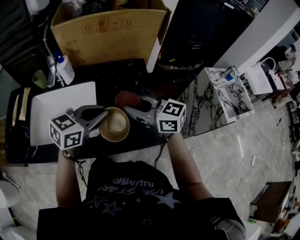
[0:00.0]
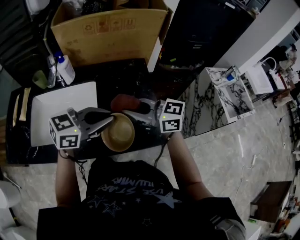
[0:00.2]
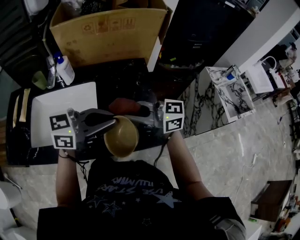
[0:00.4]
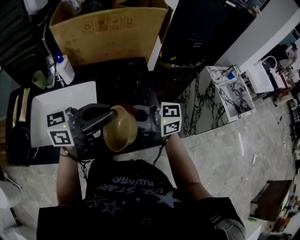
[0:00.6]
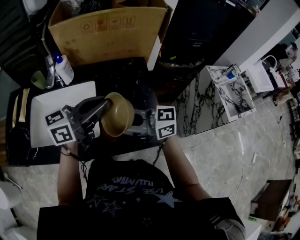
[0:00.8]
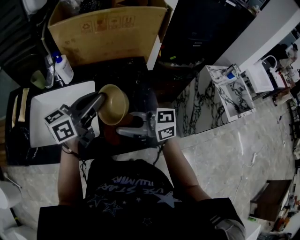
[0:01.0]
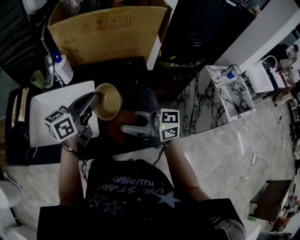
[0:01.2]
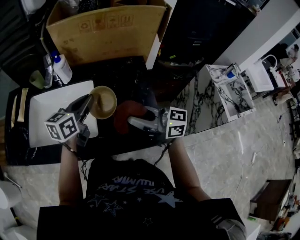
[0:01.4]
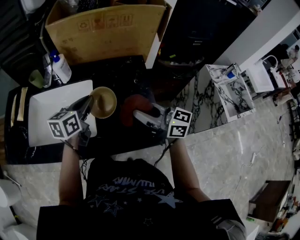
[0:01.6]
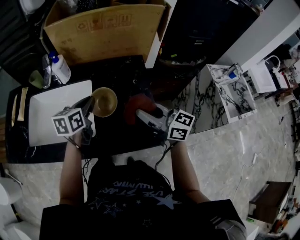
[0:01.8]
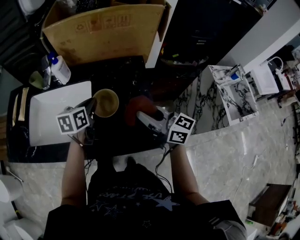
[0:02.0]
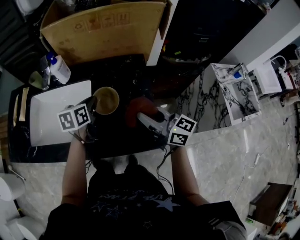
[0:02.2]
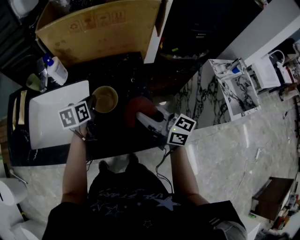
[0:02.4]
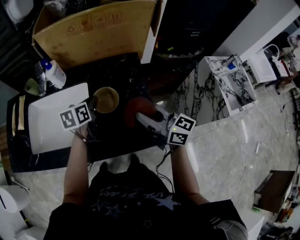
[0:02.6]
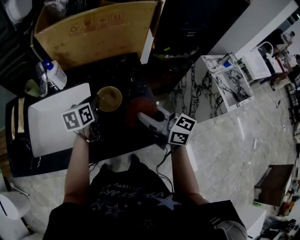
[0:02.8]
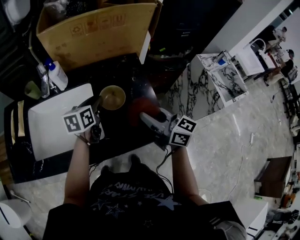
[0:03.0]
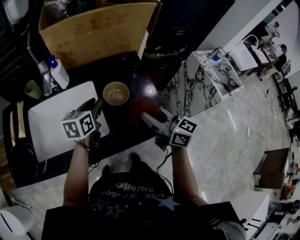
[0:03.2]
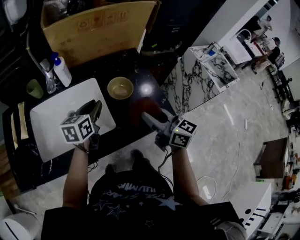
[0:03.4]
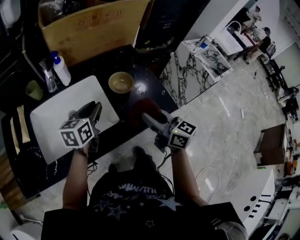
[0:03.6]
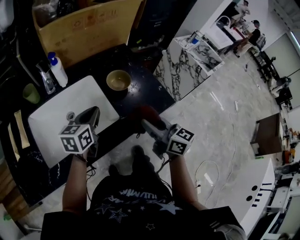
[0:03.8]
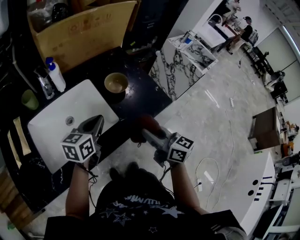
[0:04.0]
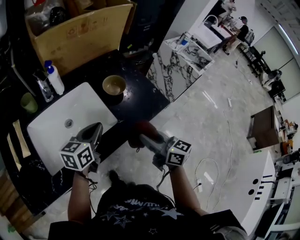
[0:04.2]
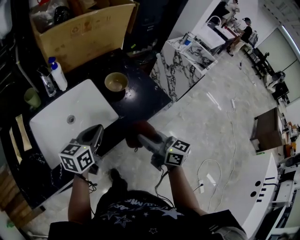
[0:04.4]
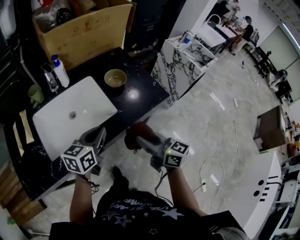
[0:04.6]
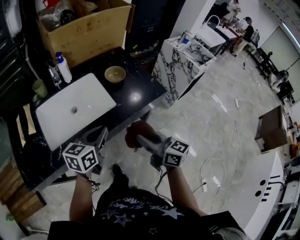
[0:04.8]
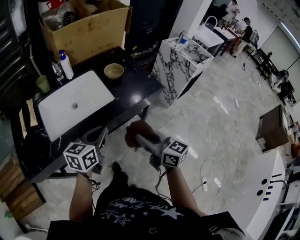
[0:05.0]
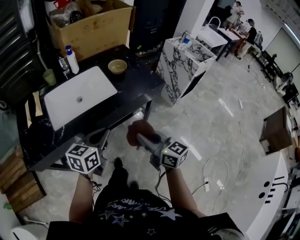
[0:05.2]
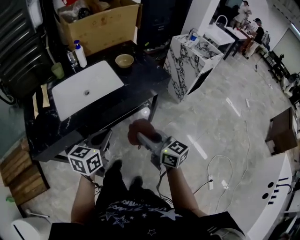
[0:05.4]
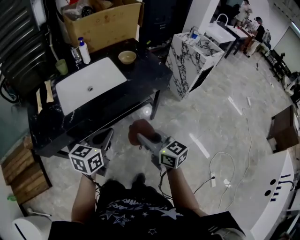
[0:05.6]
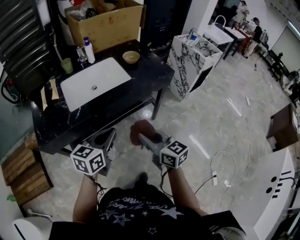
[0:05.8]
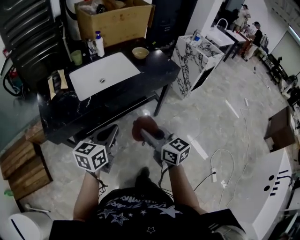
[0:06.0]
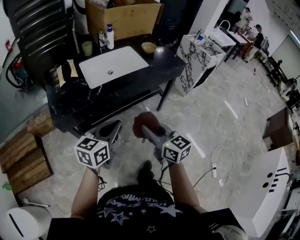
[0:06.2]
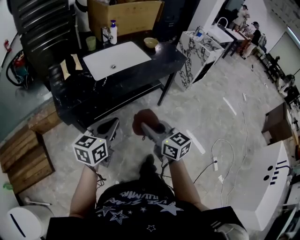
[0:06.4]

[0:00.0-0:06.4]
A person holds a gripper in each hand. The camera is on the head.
0.0 to 1.6 s: The left gripper moves some 10 cm, and turns by approximately 30 degrees; the right gripper shifts by some 5 cm.
1.6 to 3.2 s: The left gripper opens. Meanwhile the right gripper turns by approximately 20 degrees.
3.2 to 4.8 s: The grippers both shift backward by some 25 cm. The left gripper swivels roughly 30 degrees, and closes its fingers.
4.8 to 6.4 s: Both grippers travel together backward and to the left, about 40 cm.

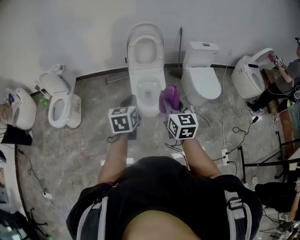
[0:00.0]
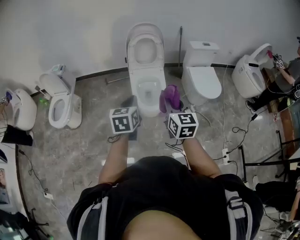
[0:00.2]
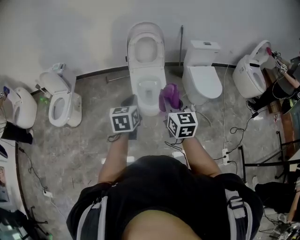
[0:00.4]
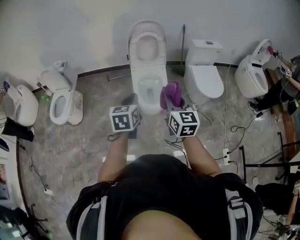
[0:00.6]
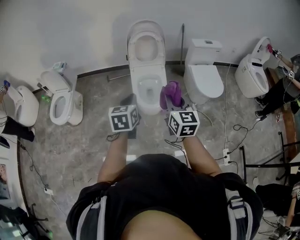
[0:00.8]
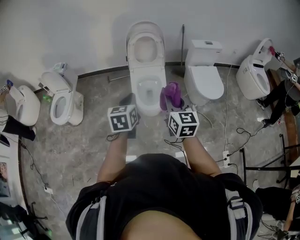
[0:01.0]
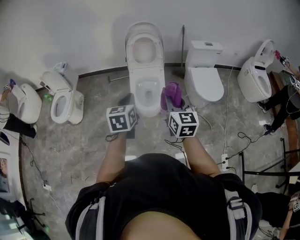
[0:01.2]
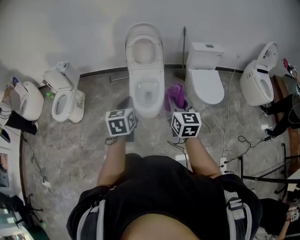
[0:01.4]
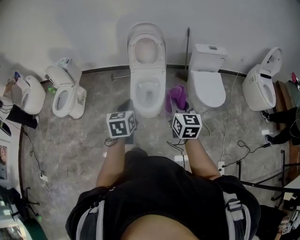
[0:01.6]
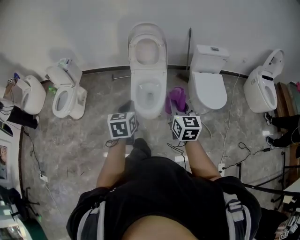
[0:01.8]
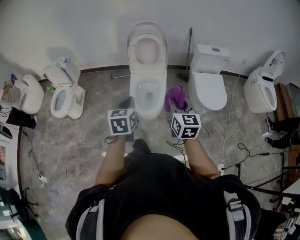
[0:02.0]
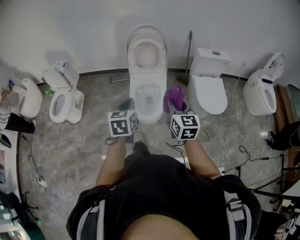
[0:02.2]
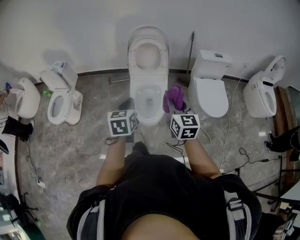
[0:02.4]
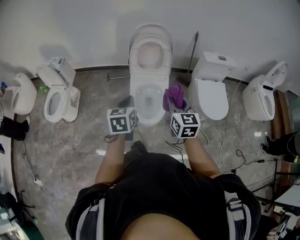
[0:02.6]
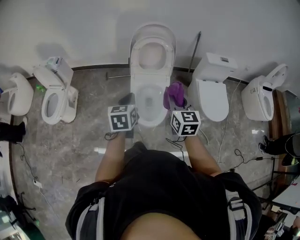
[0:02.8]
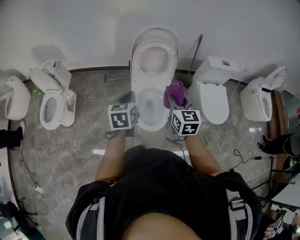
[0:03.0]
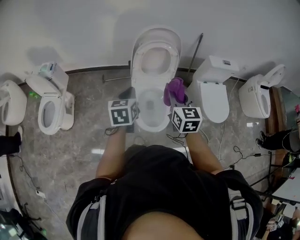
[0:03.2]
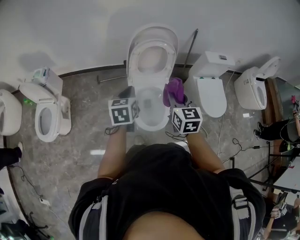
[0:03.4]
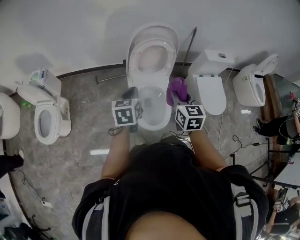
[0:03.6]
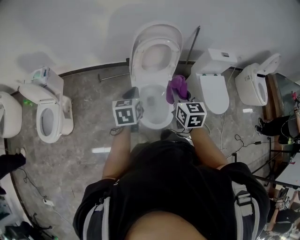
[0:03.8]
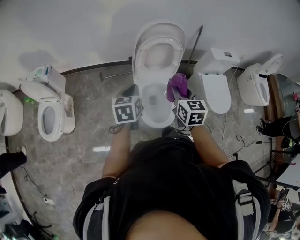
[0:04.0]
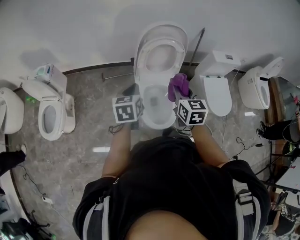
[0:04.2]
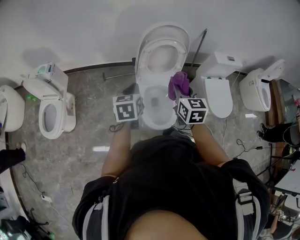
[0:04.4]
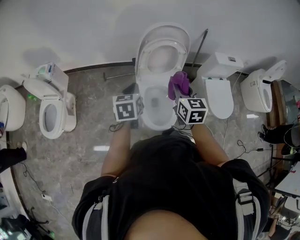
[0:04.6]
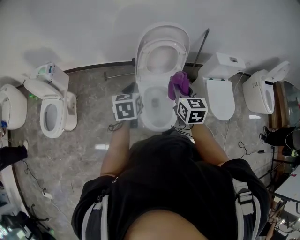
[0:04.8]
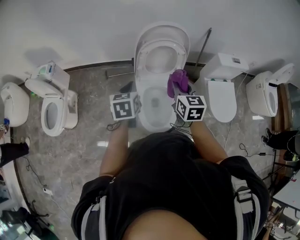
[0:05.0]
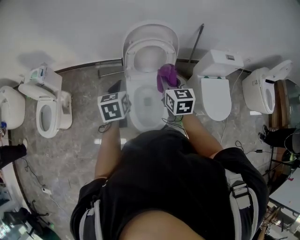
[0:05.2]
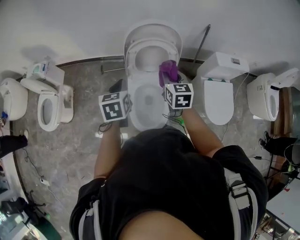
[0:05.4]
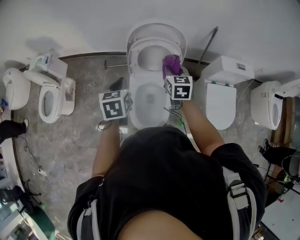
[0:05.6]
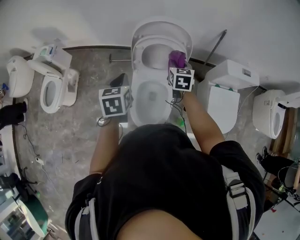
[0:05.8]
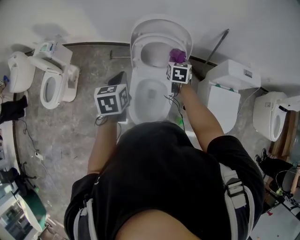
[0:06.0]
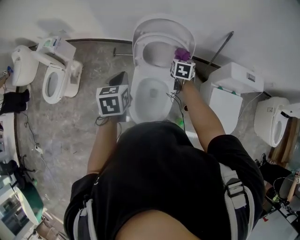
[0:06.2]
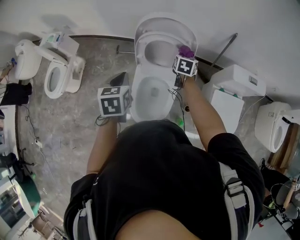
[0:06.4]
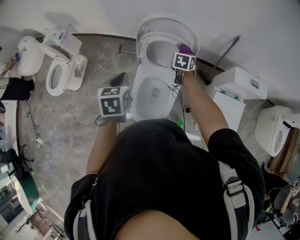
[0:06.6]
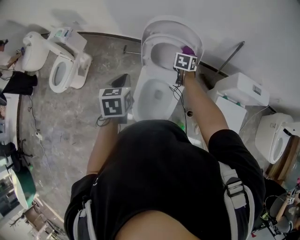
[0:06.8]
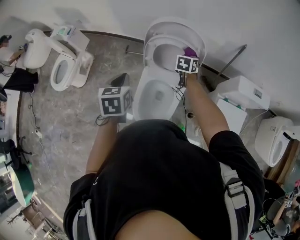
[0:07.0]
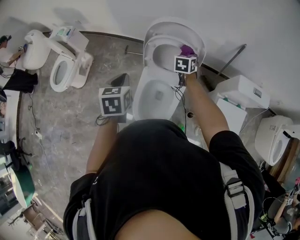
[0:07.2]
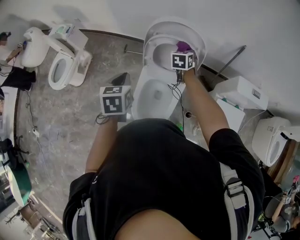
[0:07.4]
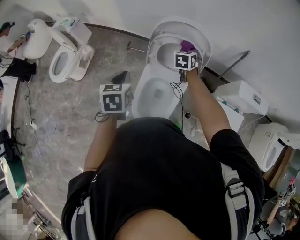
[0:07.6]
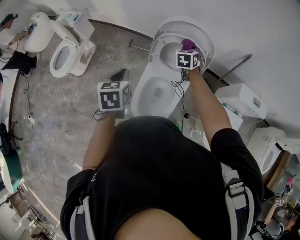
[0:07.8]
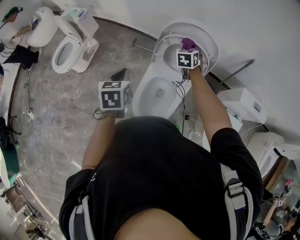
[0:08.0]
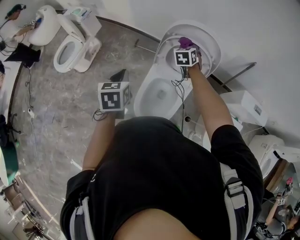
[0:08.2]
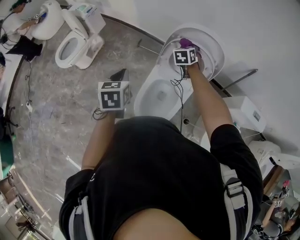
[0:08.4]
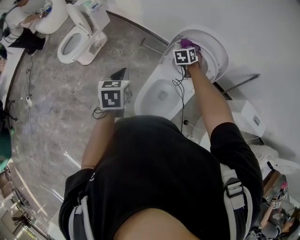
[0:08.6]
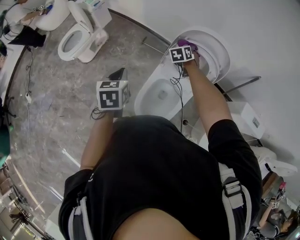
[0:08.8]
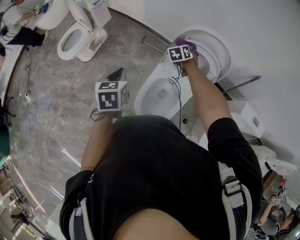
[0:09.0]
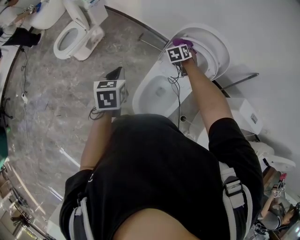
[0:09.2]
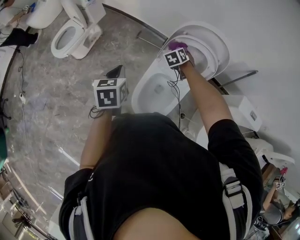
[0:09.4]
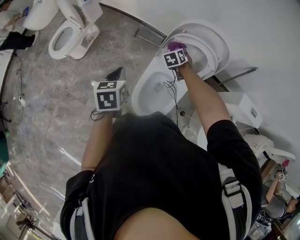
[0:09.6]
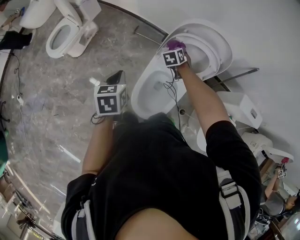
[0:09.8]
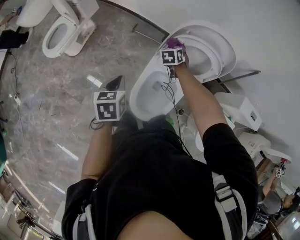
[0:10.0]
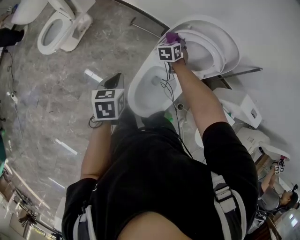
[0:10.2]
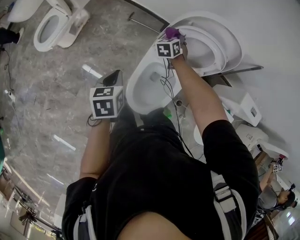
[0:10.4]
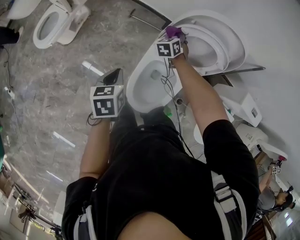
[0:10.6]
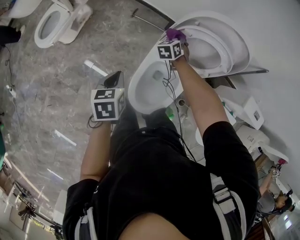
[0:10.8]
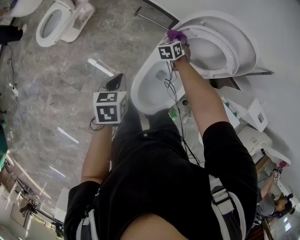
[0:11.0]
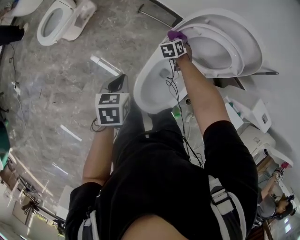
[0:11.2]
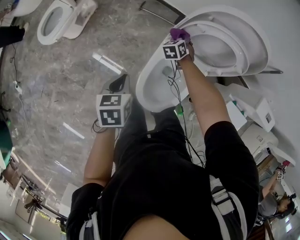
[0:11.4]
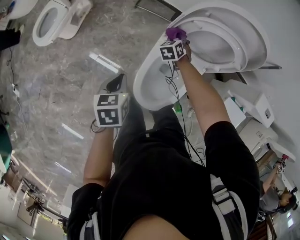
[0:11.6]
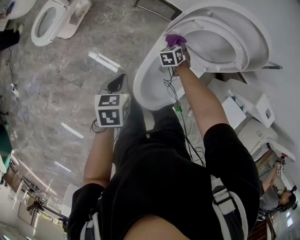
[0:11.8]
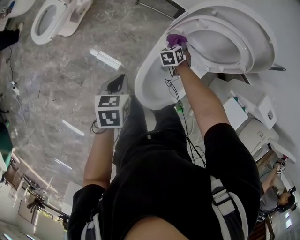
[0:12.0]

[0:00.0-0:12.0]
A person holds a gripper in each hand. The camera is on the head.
0.0 to 1.6 s: Both grippers move to the right, approximately 15 cm.
1.6 to 3.0 s: The right gripper shifts roughly 35 cm forward and to the left. The left gripper travels forward by roughly 35 cm.
3.0 to 4.4 s: The grippers both shift to the left and forward by approximately 15 cm.
4.4 to 6.0 s: The left gripper goes about 20 cm to the right and forward, while the right gripper heads forward, to the right and downward, covering approximately 35 cm.
6.0 to 7.6 s: The right gripper goes about 10 cm forward.
7.6 to 9.0 s: Both grippers travel together to the left, about 15 cm. The right gripper rotates roughly 30 degrees.
9.0 to 10.4 s: Both grippers move downward, some 10 cm.
10.4 to 12.0 s: The right gripper moves downward, approximately 15 cm, while the left gripper travels downward by about 10 cm.

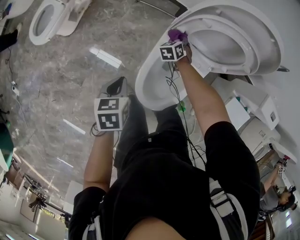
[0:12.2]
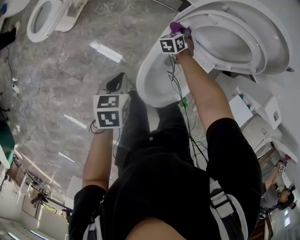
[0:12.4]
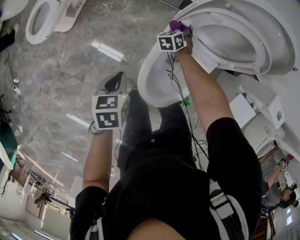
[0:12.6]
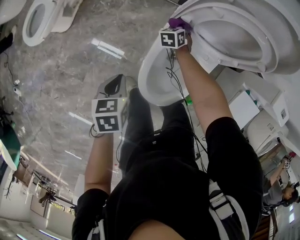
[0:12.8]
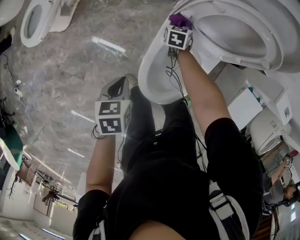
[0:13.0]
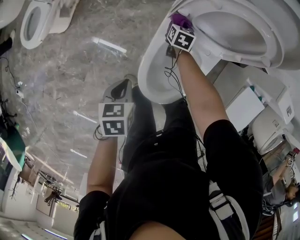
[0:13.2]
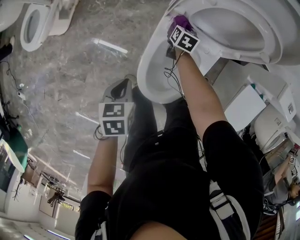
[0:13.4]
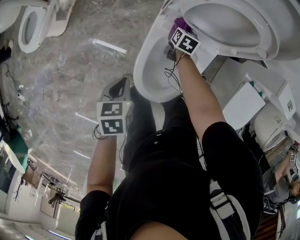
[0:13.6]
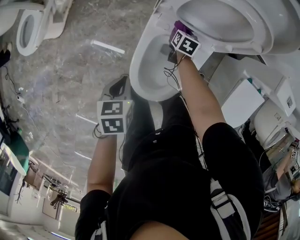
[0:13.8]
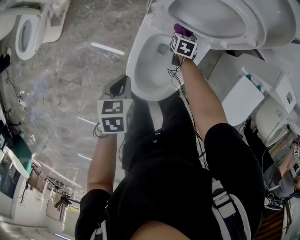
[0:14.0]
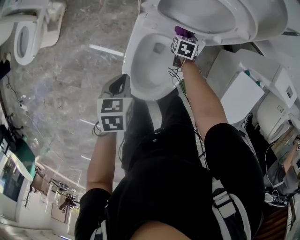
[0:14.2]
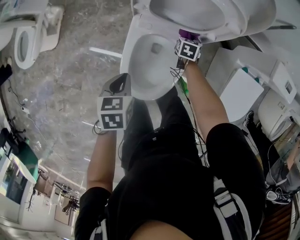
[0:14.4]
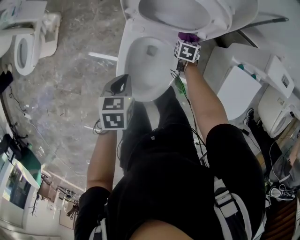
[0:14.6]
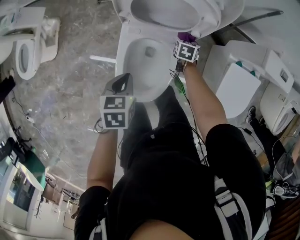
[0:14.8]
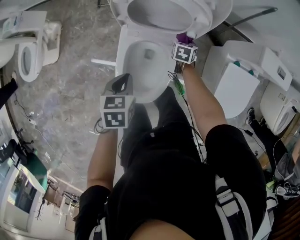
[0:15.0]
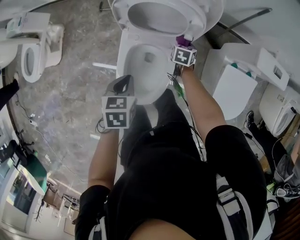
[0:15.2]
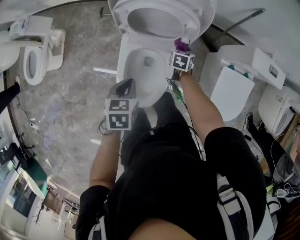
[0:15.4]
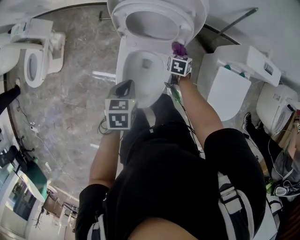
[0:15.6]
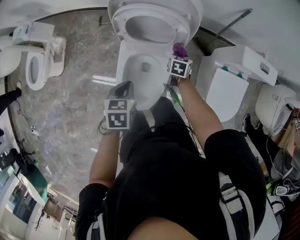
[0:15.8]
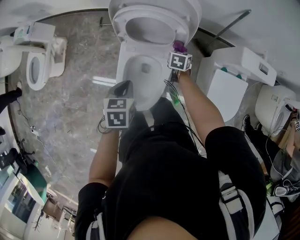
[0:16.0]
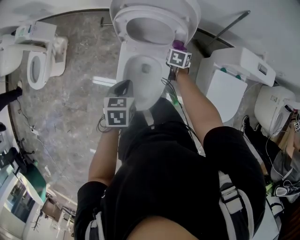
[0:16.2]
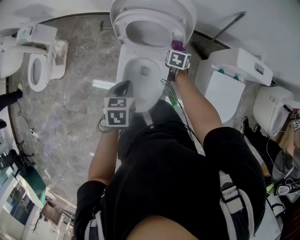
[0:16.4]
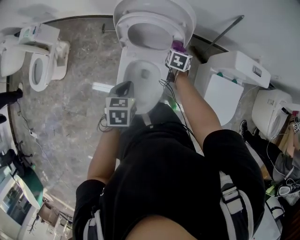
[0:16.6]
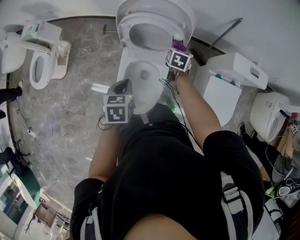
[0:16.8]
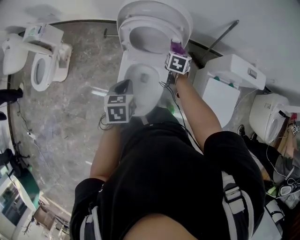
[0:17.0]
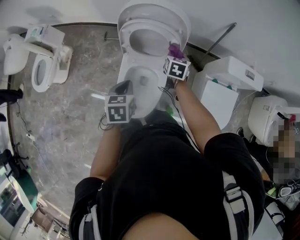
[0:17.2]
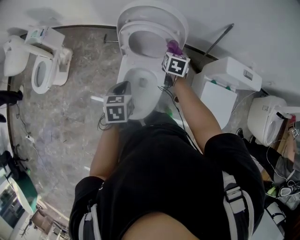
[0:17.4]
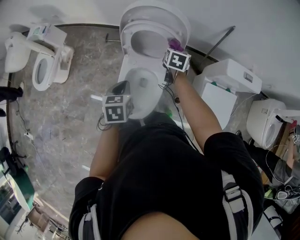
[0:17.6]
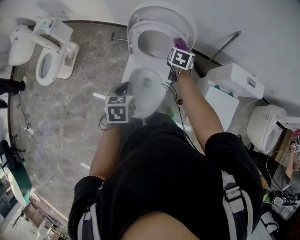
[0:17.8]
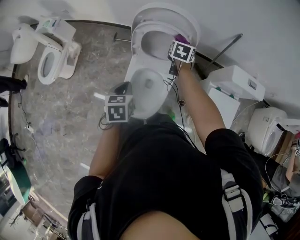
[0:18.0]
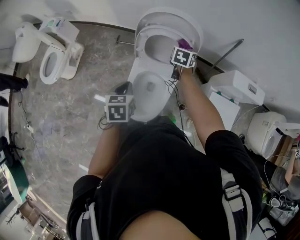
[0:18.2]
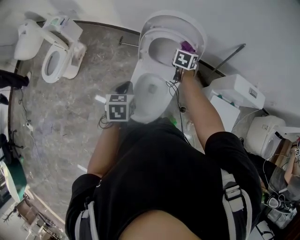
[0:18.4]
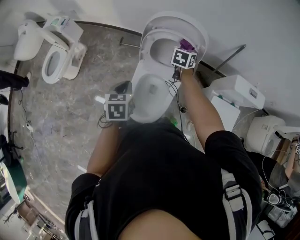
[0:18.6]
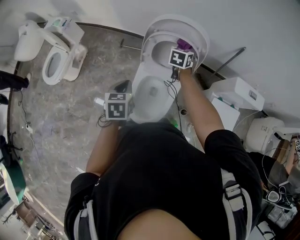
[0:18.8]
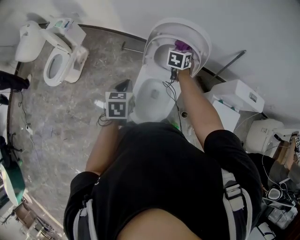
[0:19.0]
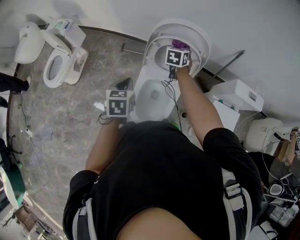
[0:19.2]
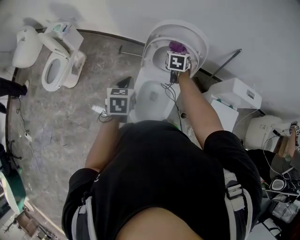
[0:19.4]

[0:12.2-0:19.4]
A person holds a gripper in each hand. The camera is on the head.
12.2 to 13.6 s: The right gripper heads to the right and downward, covering approximately 10 cm, and rolls clockwise, seen from behind, by some 50 degrees, while the left gripper shifts approximately 10 cm downward and to the right.
13.6 to 15.0 s: The right gripper is displaced to the right by about 25 cm, while the left gripper moves to the right and forward, about 15 cm.
15.0 to 16.6 s: The left gripper is displaced upward by some 10 cm. The right gripper moves upward, approximately 20 cm.
16.6 to 18.0 s: The left gripper shifts roughly 5 cm upward, while the right gripper shifts some 15 cm upward and to the left.
18.0 to 19.4 s: The grippers both shift to the left and upward by roughly 10 cm.
